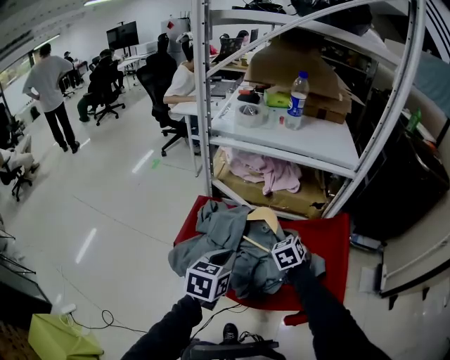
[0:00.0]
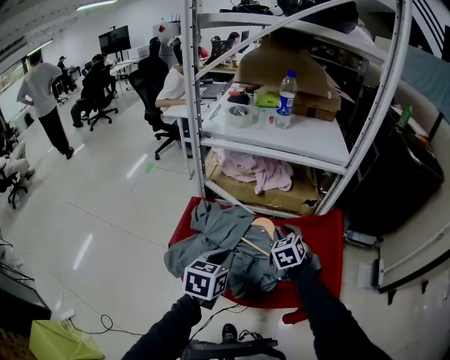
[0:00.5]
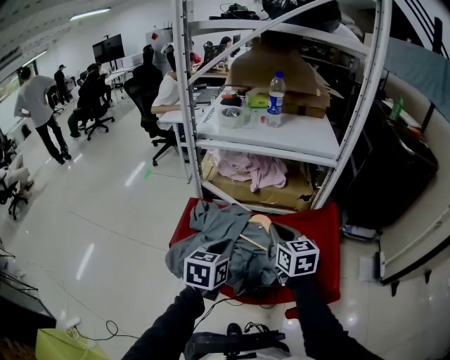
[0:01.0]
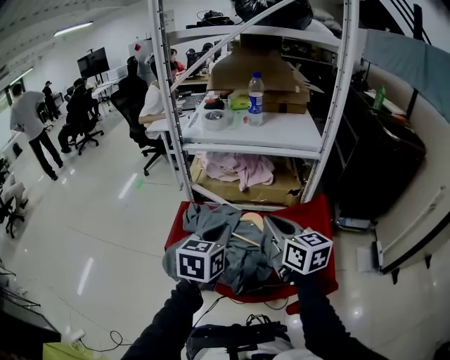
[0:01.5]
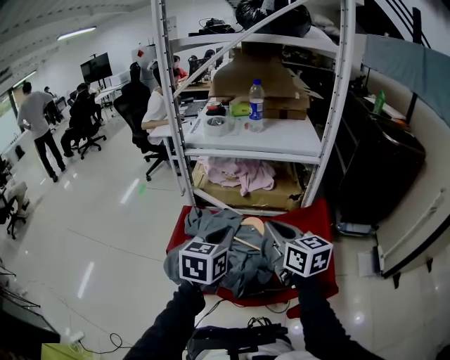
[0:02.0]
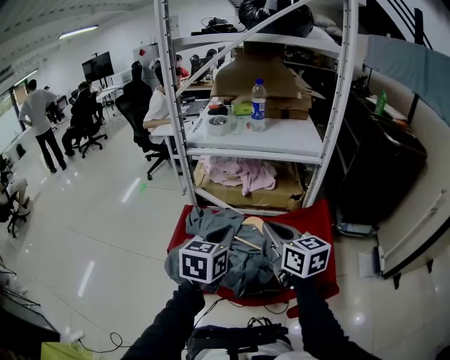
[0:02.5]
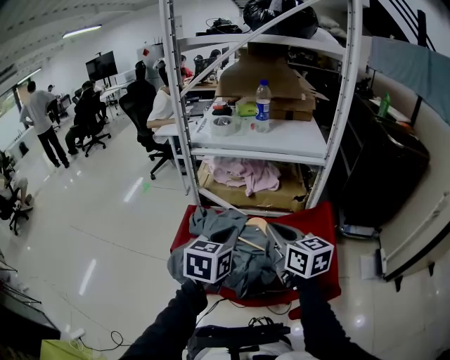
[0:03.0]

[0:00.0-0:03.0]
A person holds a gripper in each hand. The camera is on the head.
0:00.0 to 0:01.5: The left gripper travels upward and to the right by about 10 cm; the right gripper shifts about 25 cm upward and backward, and tilts its fingers approximately 30 degrees upward.
0:01.5 to 0:03.0: The grippers make only small movements.

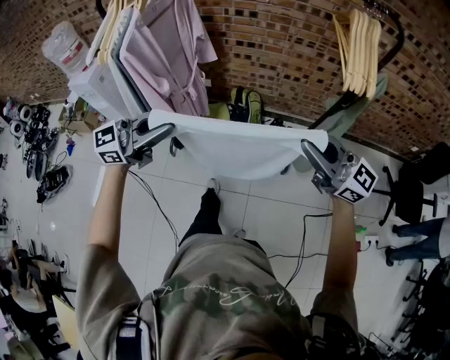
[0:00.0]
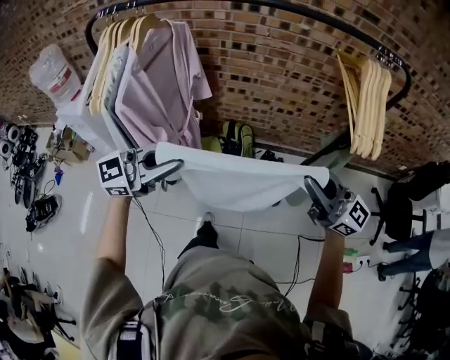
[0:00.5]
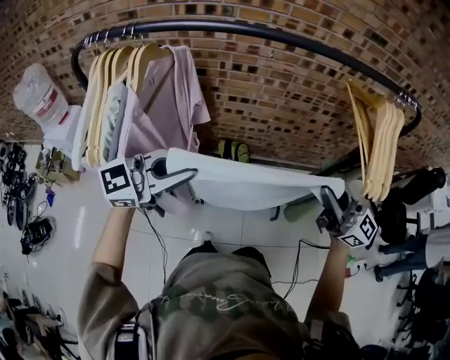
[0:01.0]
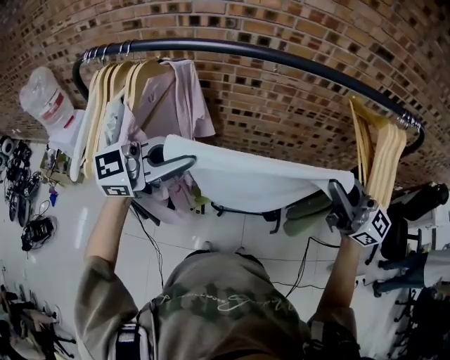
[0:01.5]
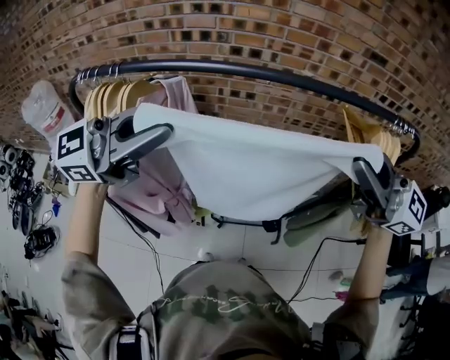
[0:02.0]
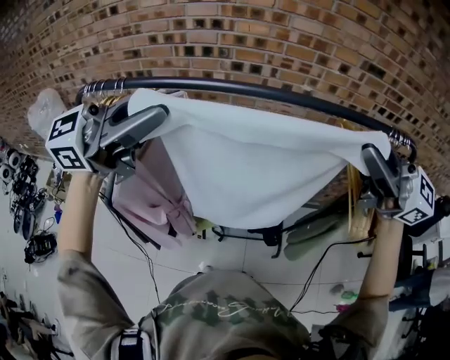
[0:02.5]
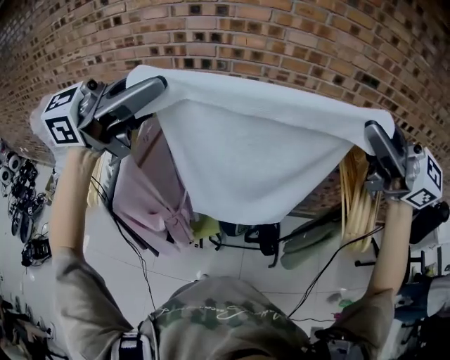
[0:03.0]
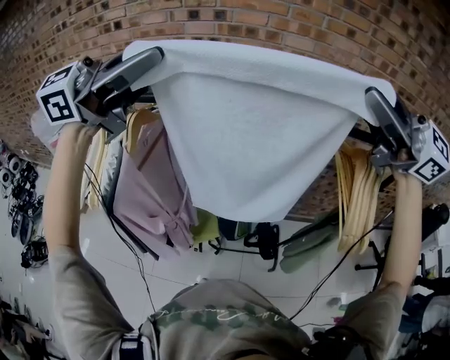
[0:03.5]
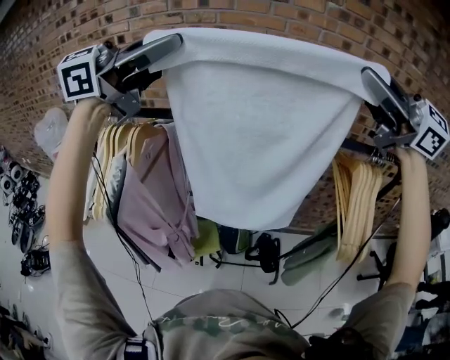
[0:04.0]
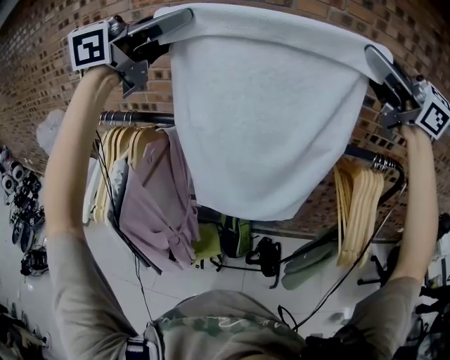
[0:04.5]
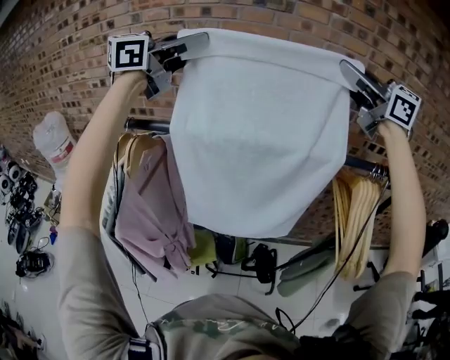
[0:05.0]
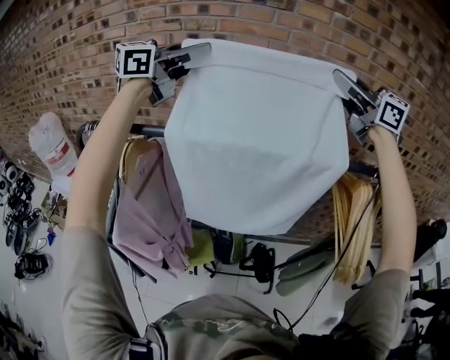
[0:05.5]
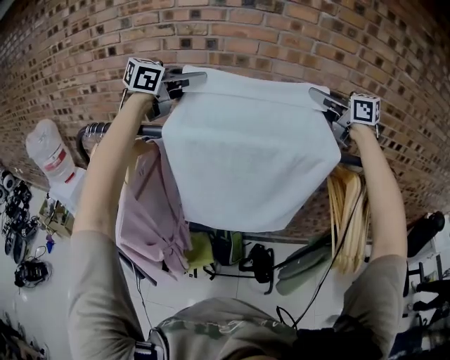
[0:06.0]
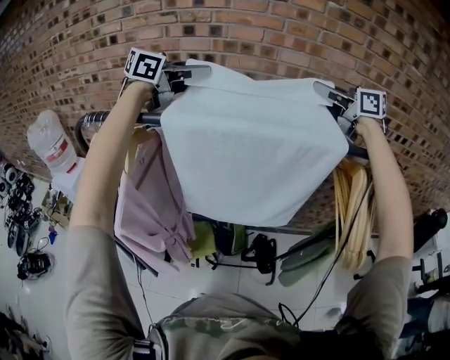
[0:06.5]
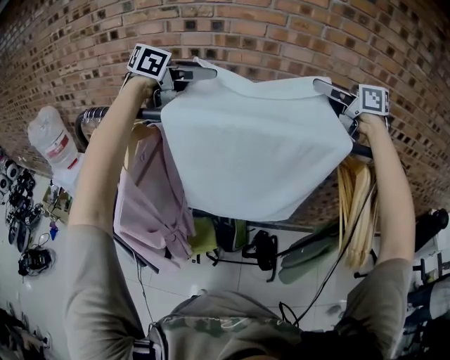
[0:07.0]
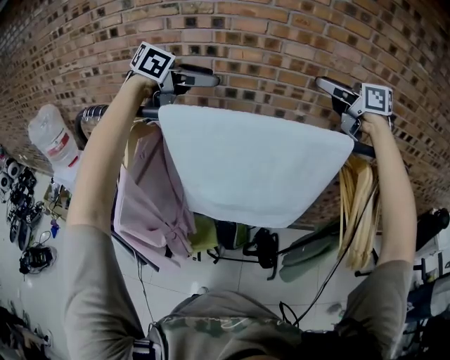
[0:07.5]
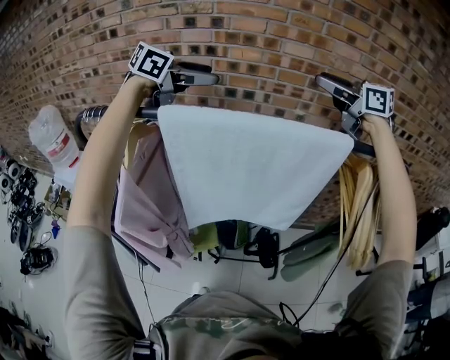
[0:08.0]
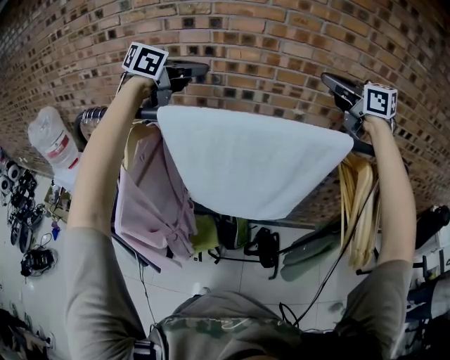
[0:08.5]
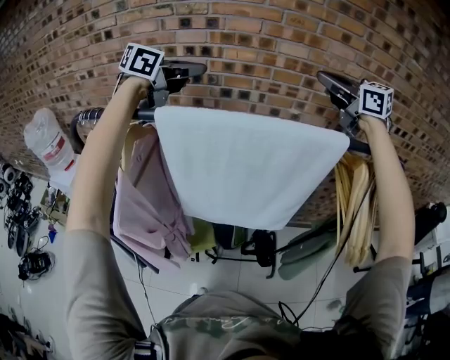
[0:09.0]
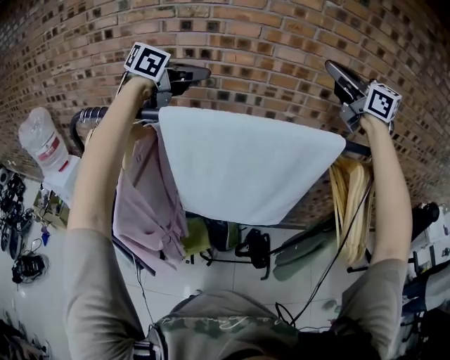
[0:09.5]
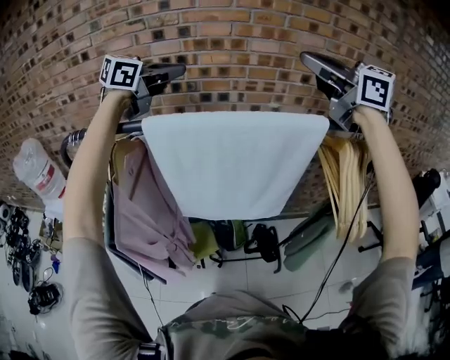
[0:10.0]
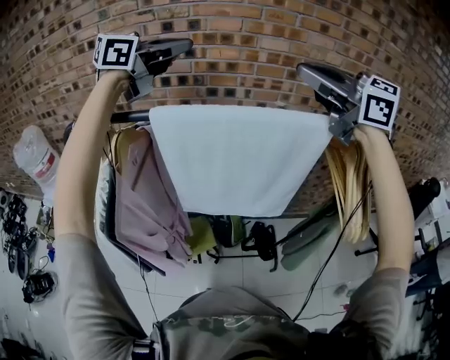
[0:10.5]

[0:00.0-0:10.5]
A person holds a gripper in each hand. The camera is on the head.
0:00.0 to 0:02.0: The left gripper shifts by approximately 35 cm, while the right gripper ends up approximately 35 cm from where it was.
0:02.0 to 0:04.0: The grippers both shift upward by some 20 cm.
0:04.0 to 0:06.5: The left gripper shifts by some 25 cm, and swivels approximately 20 degrees. Meanwhile the right gripper ends up some 25 cm from where it was, and swivels some 30 degrees.
0:06.5 to 0:08.5: The left gripper opens, then closes once more, while the right gripper opens, then closes once more.
0:08.5 to 0:10.5: The right gripper is displaced backward and to the left by some 20 cm. Meanwhile the left gripper is displaced upward and backward by approximately 10 cm.

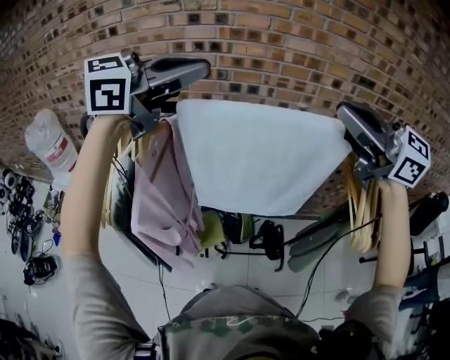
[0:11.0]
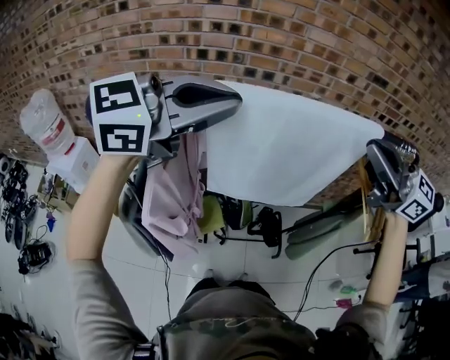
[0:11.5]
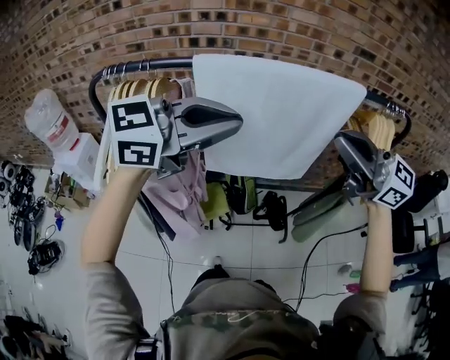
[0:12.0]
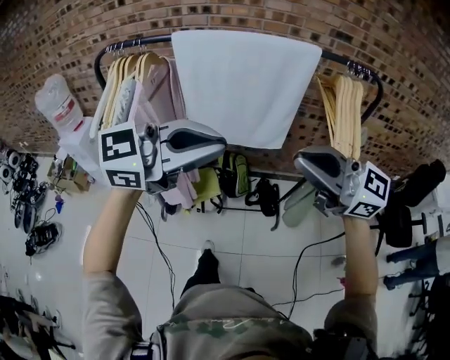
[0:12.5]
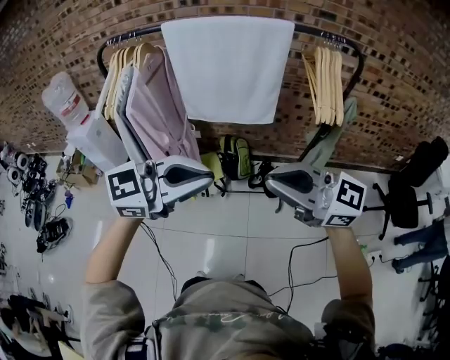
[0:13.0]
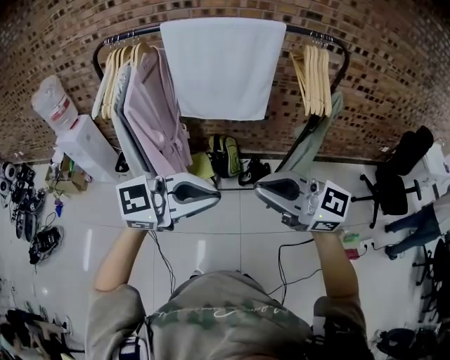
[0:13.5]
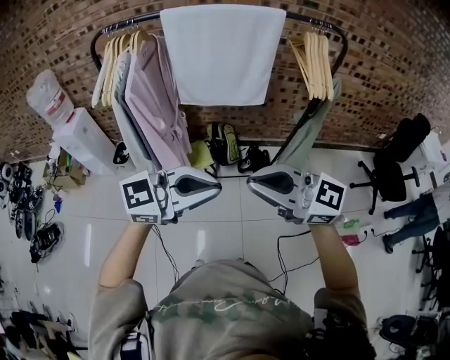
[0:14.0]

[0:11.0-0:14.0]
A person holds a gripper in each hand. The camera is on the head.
0:11.0 to 0:12.5: The left gripper shifts by about 40 cm; the right gripper moves about 30 cm.
0:12.5 to 0:14.0: The left gripper ends up roughly 25 cm from where it was; the right gripper changes place by about 25 cm.

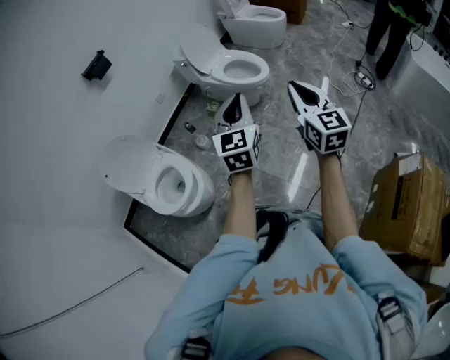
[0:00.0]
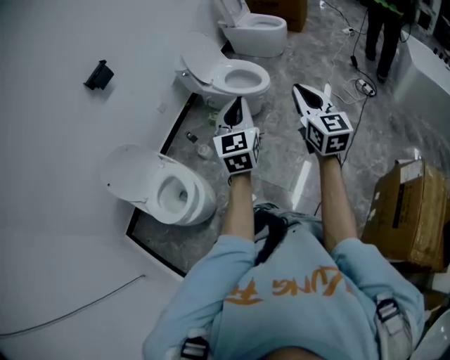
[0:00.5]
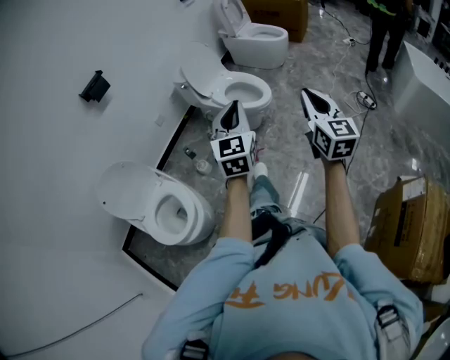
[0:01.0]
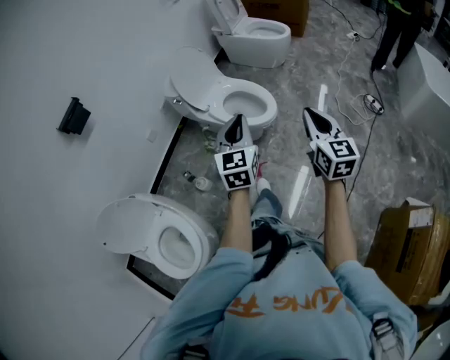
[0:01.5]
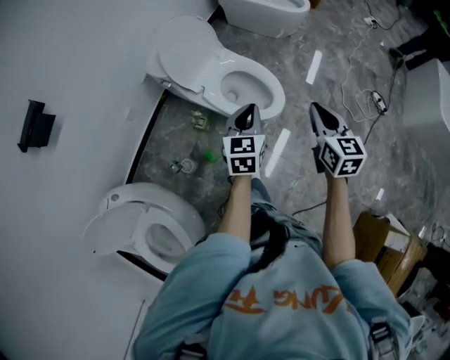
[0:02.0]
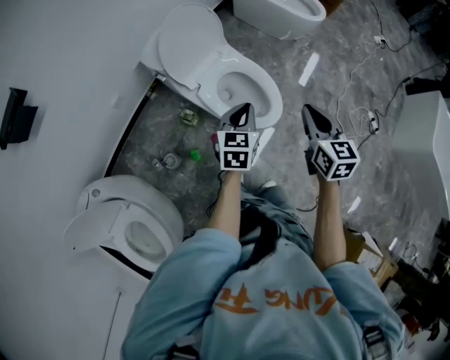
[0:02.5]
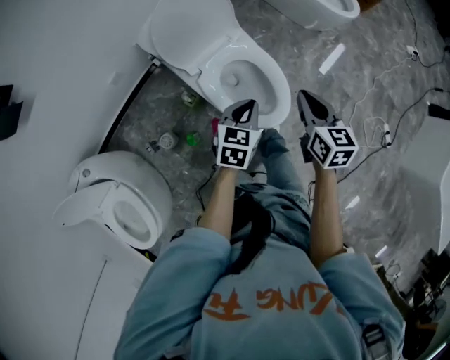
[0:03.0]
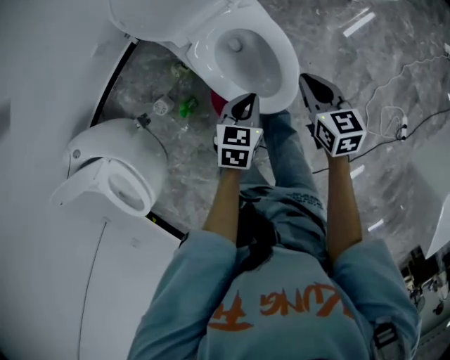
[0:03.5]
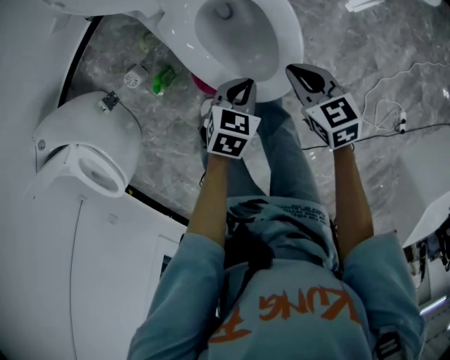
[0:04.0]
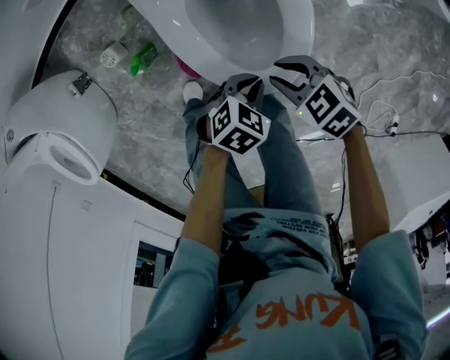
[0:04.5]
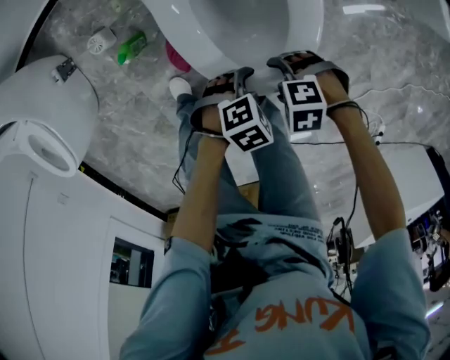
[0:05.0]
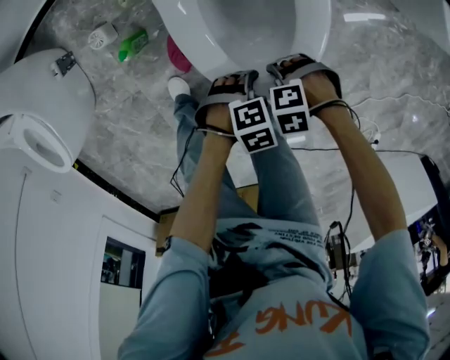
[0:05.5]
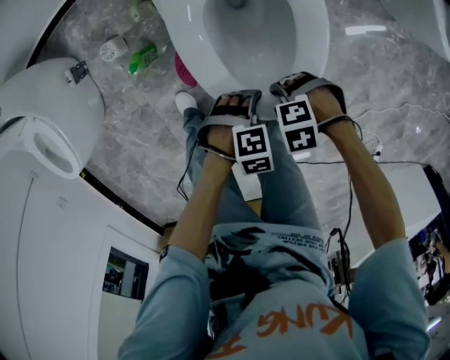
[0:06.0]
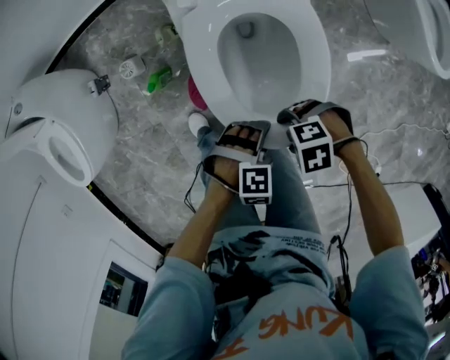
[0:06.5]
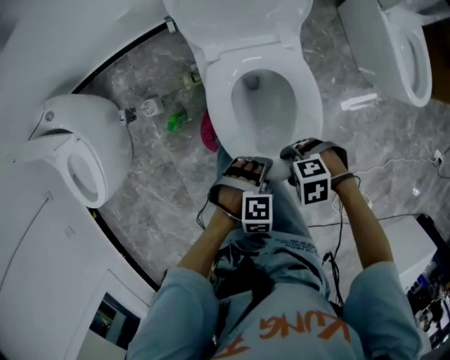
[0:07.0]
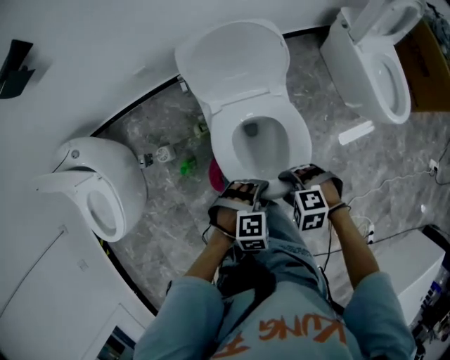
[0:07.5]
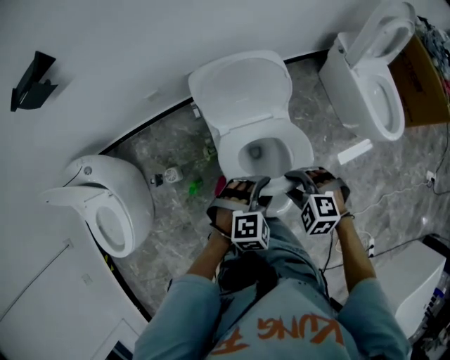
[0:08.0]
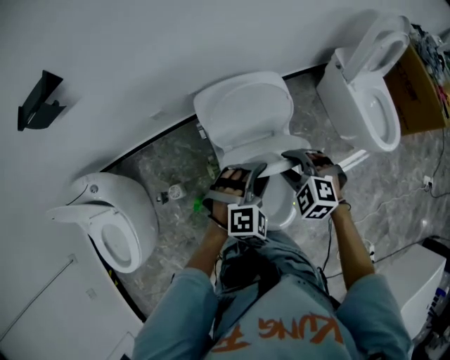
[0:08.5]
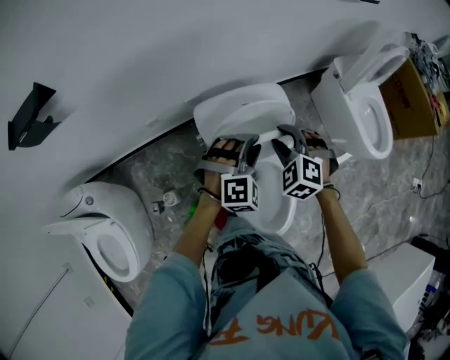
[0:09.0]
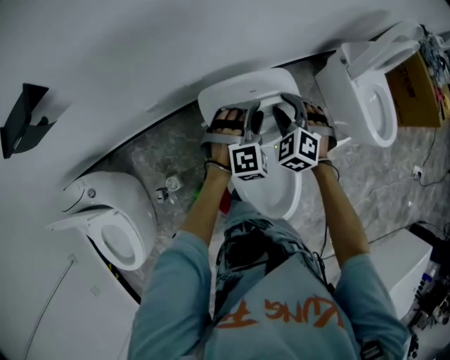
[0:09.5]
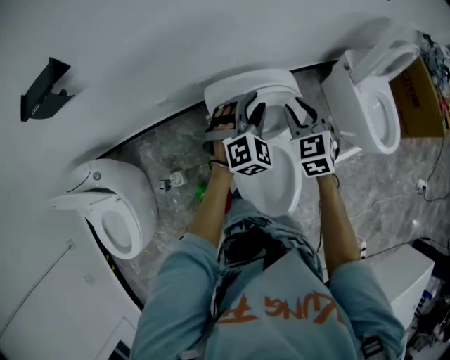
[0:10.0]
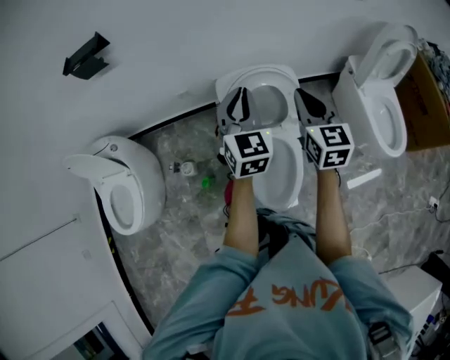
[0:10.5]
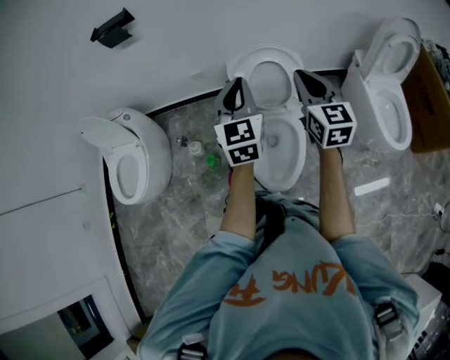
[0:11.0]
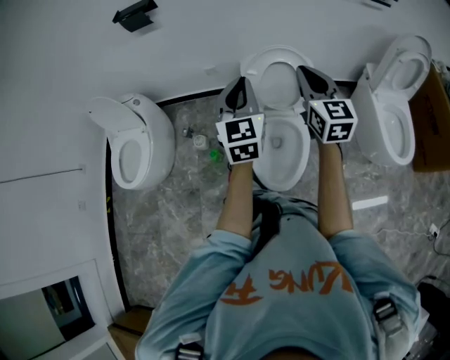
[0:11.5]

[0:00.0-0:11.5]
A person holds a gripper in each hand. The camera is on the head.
0:00.0 to 0:02.0: The pair of grippers is taken forward, about 50 cm. The right gripper swivels about 20 degrees, while the left gripper turns by roughly 20 degrees.
0:02.0 to 0:04.0: The two grippers go approximately 40 cm downward. The left gripper tilts its fingers approximately 30 degrees downward. The right gripper changes its angle by approximately 60 degrees.
0:04.0 to 0:06.0: The right gripper ends up approximately 20 cm from where it was, swivels roughly 100 degrees, and opens. Meanwhile the left gripper moves approximately 15 cm, rotates roughly 40 degrees, and opens its fingers.
0:06.0 to 0:07.5: The grippers both shift upward by roughly 25 cm. The left gripper swivels roughly 20 degrees, and closes, while the right gripper changes its angle by approximately 30 degrees.
0:07.5 to 0:09.5: Both grippers are carried some 40 cm. The right gripper turns by about 50 degrees. The left gripper swivels about 40 degrees.
0:09.5 to 0:11.5: The left gripper shifts by approximately 40 cm, points its fingers some 30 degrees further upward, and closes its fingers. Meanwhile the right gripper changes place by approximately 35 cm, angles its fingers upward, by about 40 degrees, and closes its fingers.
